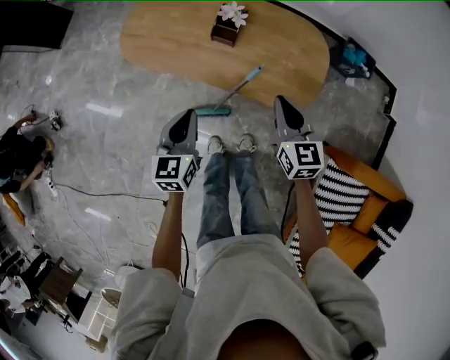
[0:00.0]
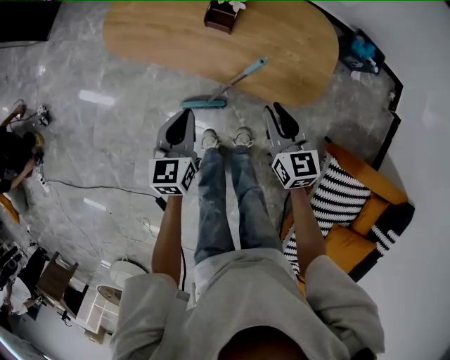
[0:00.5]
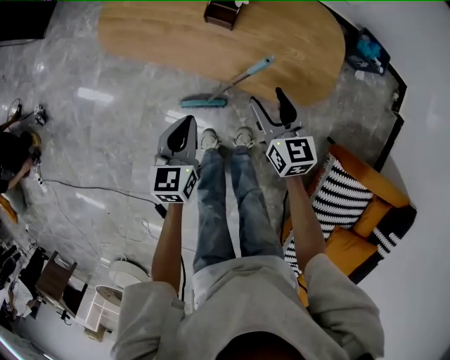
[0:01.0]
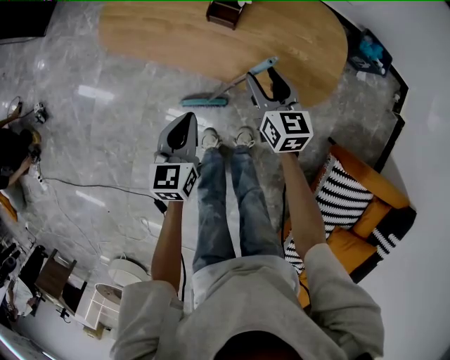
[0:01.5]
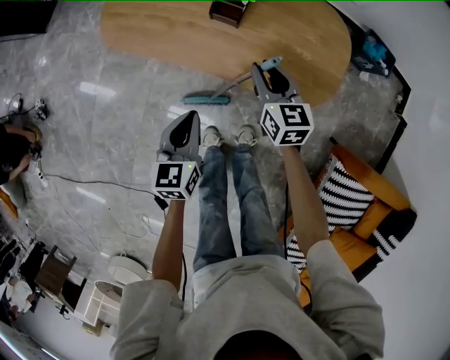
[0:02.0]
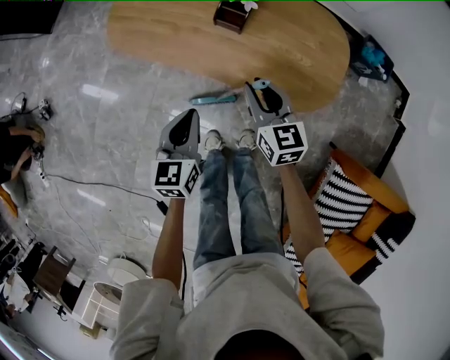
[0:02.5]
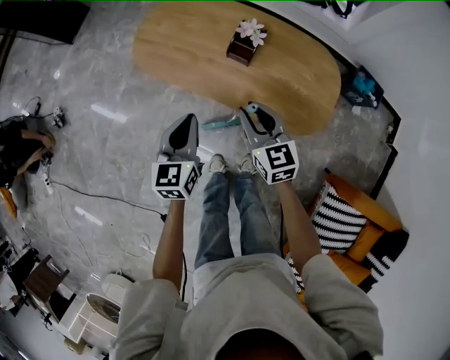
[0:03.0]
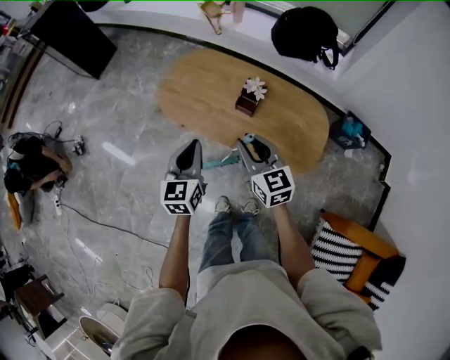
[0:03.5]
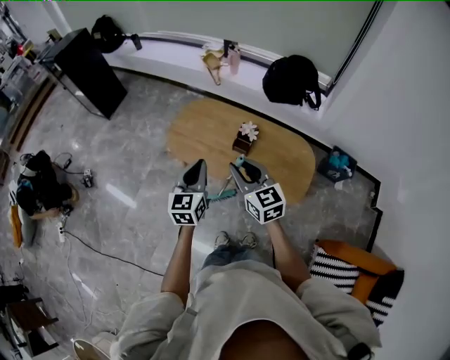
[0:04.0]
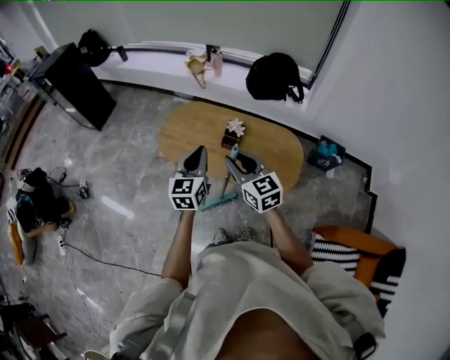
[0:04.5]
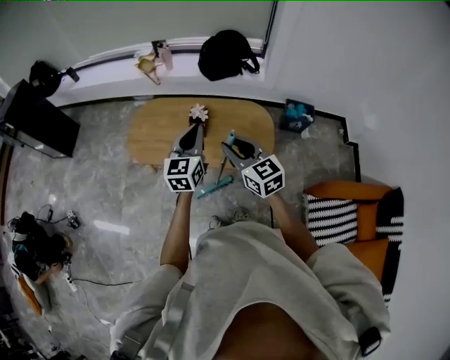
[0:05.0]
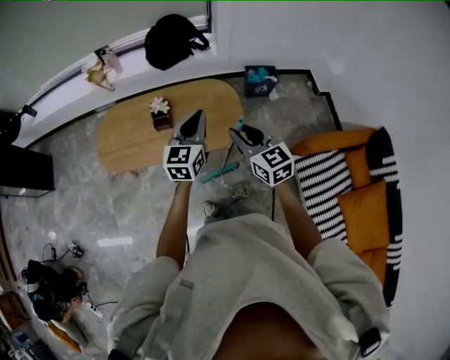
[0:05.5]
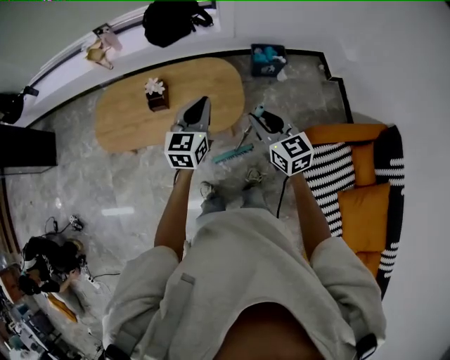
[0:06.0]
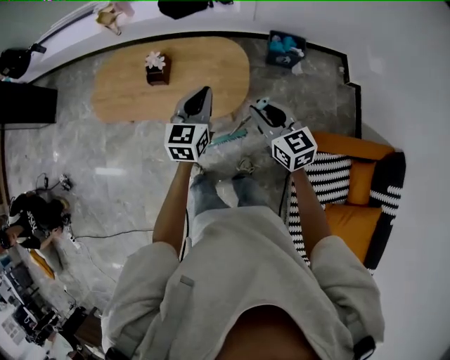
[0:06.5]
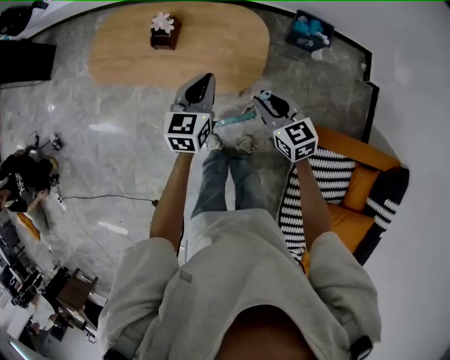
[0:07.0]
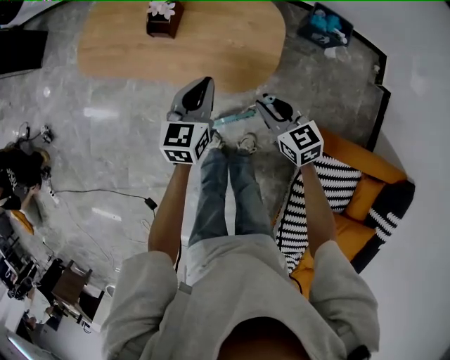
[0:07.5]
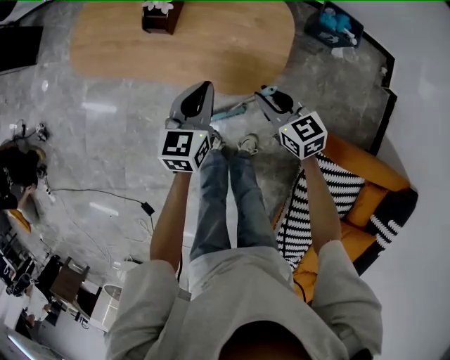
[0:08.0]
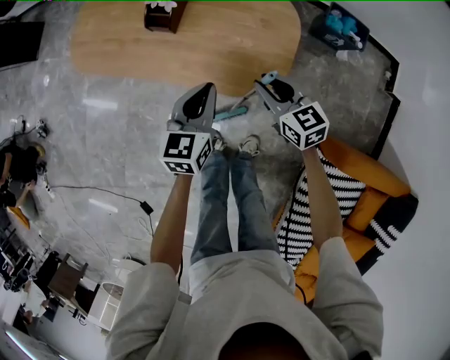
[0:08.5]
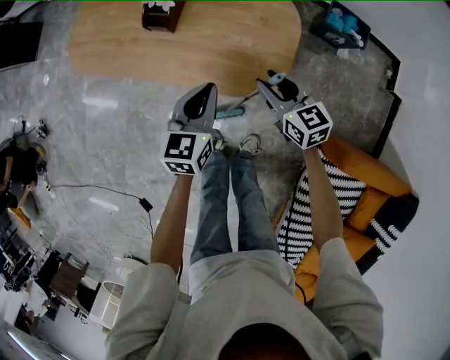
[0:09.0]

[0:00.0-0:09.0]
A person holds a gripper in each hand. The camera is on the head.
0.0 to 2.0 s: The left gripper heads downward, covering about 10 cm; the right gripper goes some 15 cm downward and forward, and opens.
2.0 to 4.5 s: The two grippers go some 35 cm upward. The left gripper changes its angle by roughly 20 degrees, while the right gripper changes its angle by some 20 degrees.
4.5 to 7.0 s: The left gripper changes place by approximately 35 cm, and changes its angle by roughly 20 degrees, while the right gripper shifts by some 40 cm.
7.0 to 9.0 s: The right gripper heads downward and forward, covering approximately 20 cm, while the left gripper moves downward, approximately 15 cm.

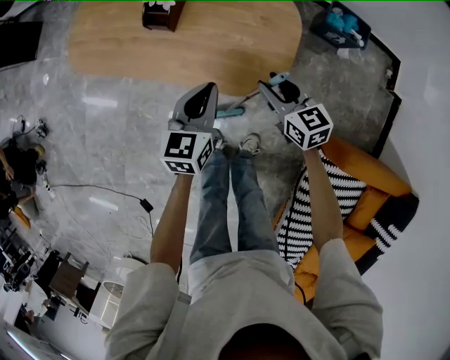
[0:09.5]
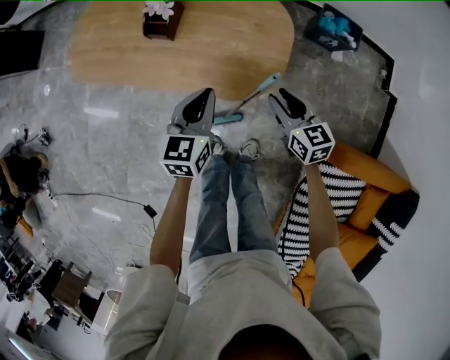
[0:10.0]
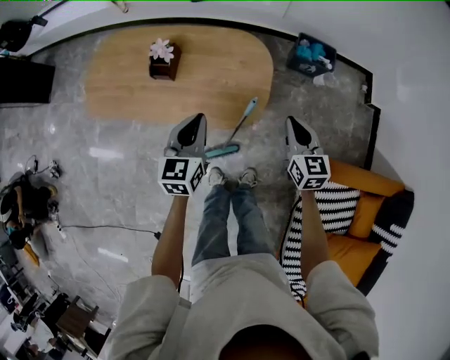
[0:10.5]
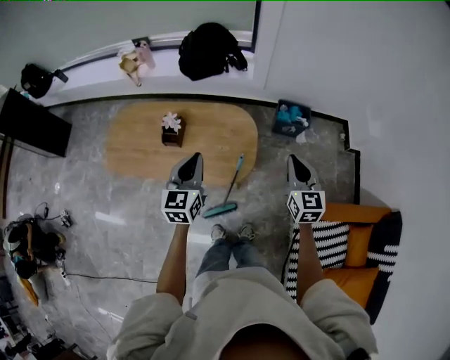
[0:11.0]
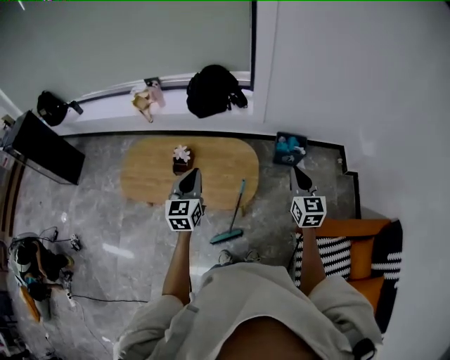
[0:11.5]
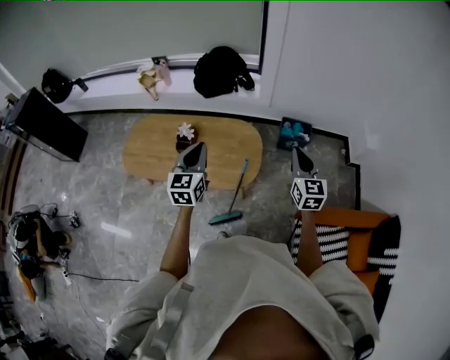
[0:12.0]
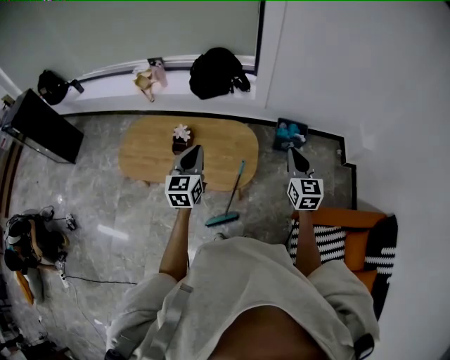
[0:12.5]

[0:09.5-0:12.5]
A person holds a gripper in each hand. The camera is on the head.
9.5 to 11.0 s: The right gripper goes roughly 35 cm upward and to the right, rotates about 40 degrees, and closes up. The left gripper heads upward, covering roughly 25 cm.
11.0 to 12.5 s: Both grippers travel together upward, approximately 10 cm.

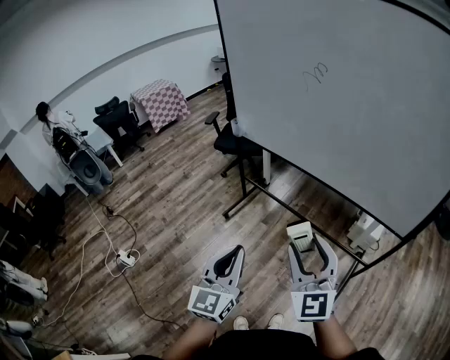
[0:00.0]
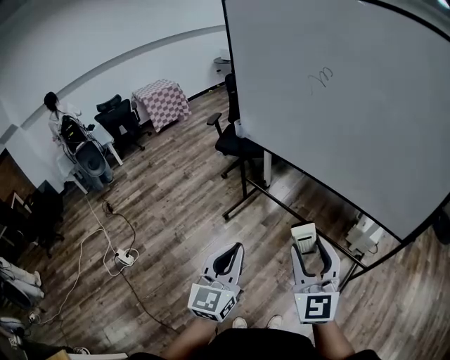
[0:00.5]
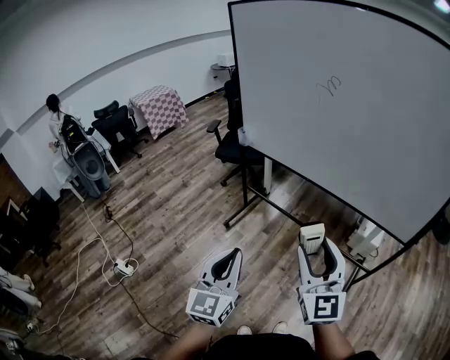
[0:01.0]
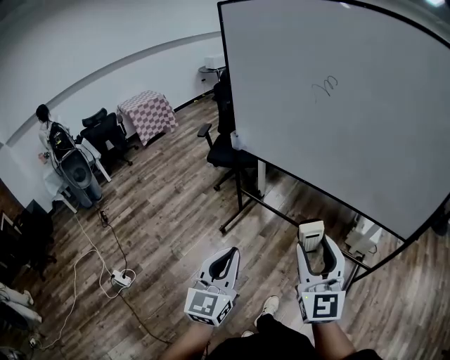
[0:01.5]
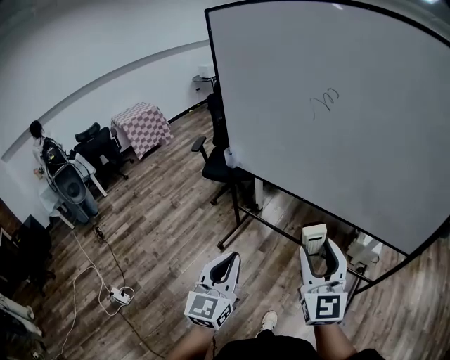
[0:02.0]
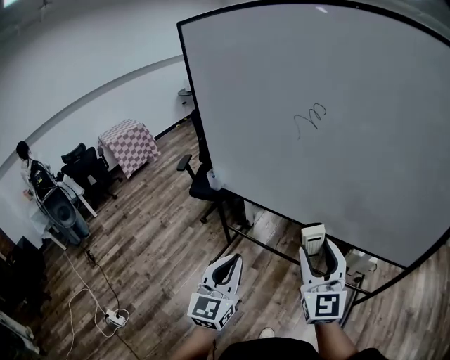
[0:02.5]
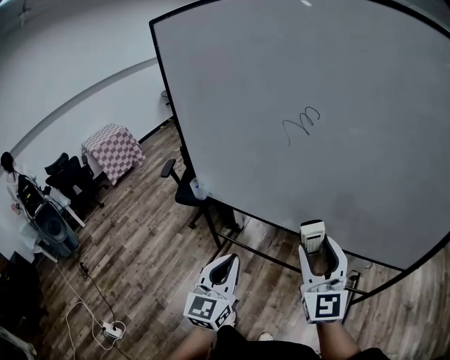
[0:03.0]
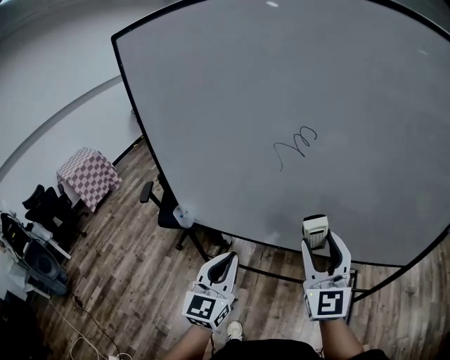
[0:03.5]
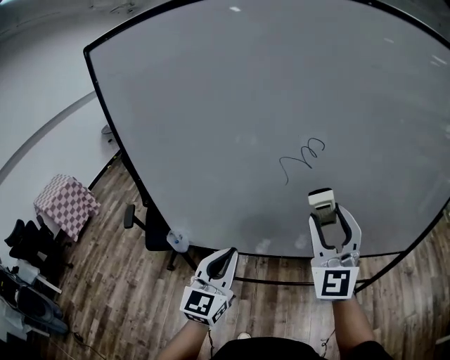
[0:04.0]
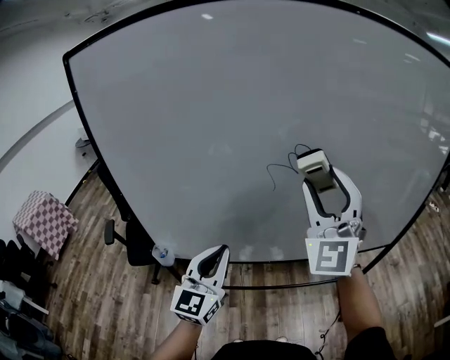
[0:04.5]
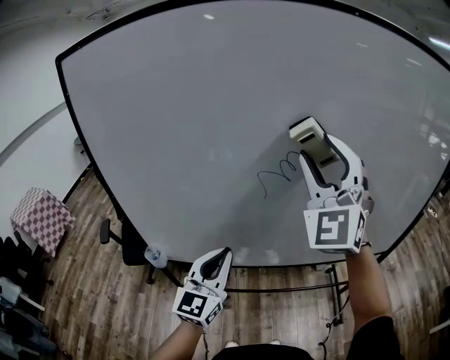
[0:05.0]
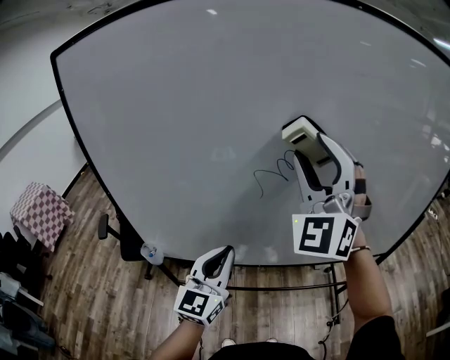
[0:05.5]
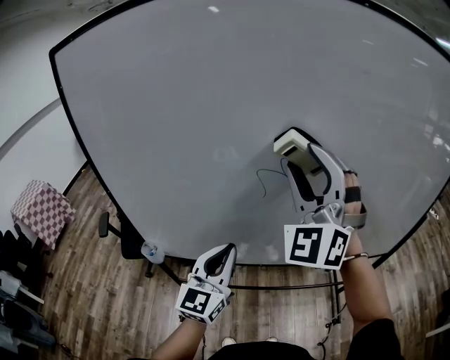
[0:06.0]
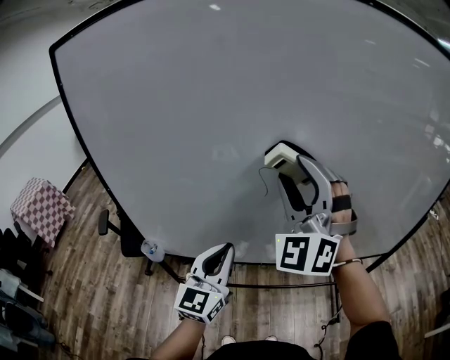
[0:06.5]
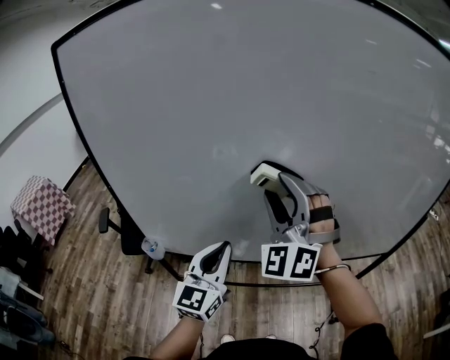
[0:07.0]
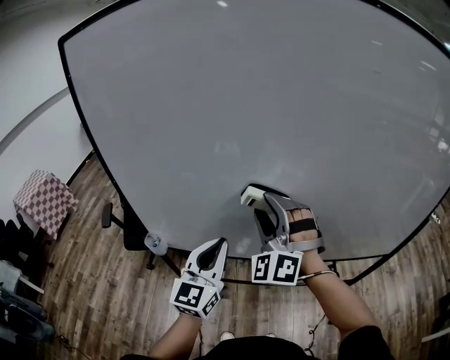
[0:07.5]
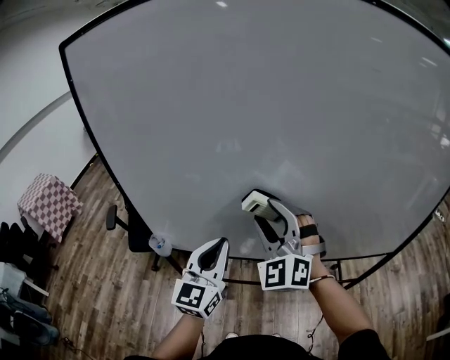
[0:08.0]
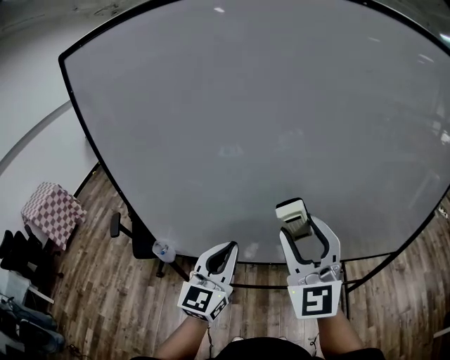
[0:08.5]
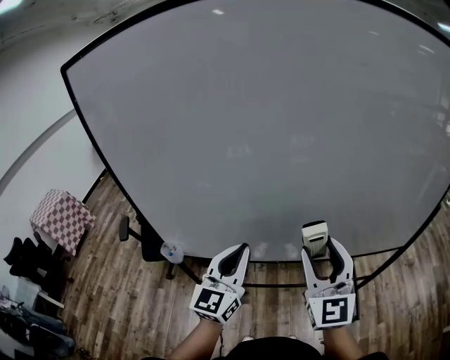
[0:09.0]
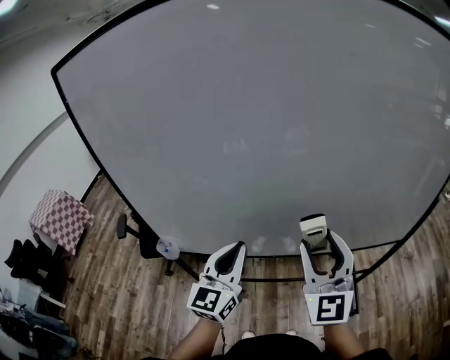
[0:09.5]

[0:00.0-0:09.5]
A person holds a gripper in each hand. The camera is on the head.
0.0 to 2.0 s: The right gripper travels forward by approximately 15 cm, while the left gripper goes some 20 cm forward and to the left.
2.0 to 4.0 s: The right gripper shifts by about 35 cm, and changes its angle by roughly 40 degrees; the left gripper ends up approximately 40 cm from where it was, and changes its angle by approximately 30 degrees.
4.0 to 5.5 s: The left gripper is displaced forward by roughly 5 cm, while the right gripper is displaced upward and forward by some 15 cm, and changes its angle by some 30 degrees.
5.5 to 7.5 s: The right gripper heads downward and to the left, covering some 20 cm, and rotates roughly 20 degrees.
7.5 to 9.5 s: The right gripper travels to the right and backward by roughly 15 cm, and twists approximately 50 degrees clockwise, seen from behind.

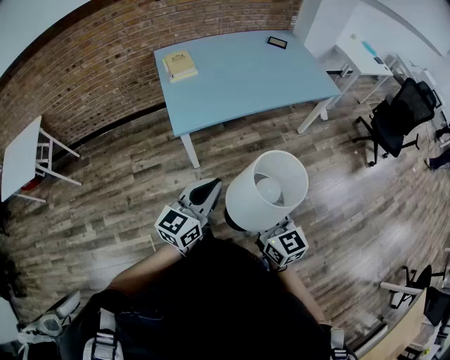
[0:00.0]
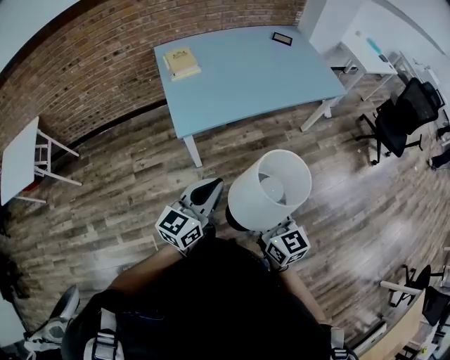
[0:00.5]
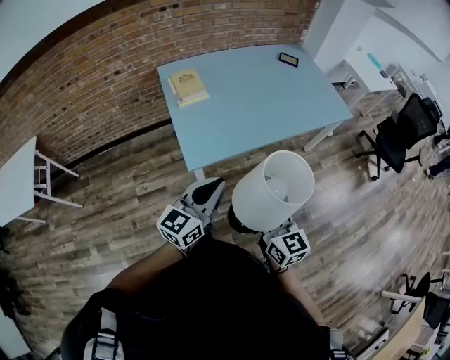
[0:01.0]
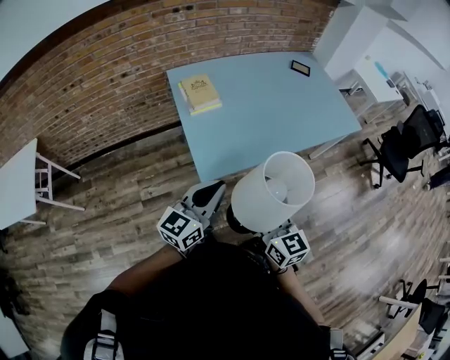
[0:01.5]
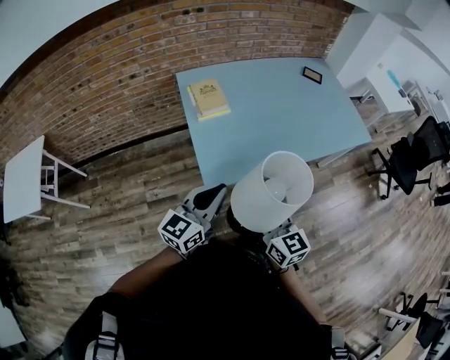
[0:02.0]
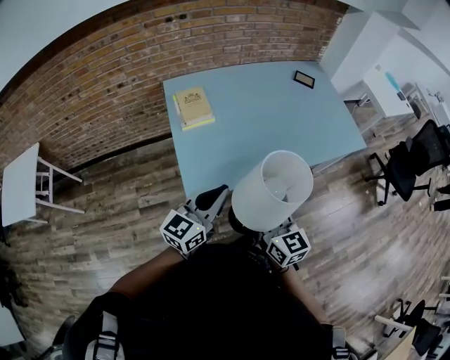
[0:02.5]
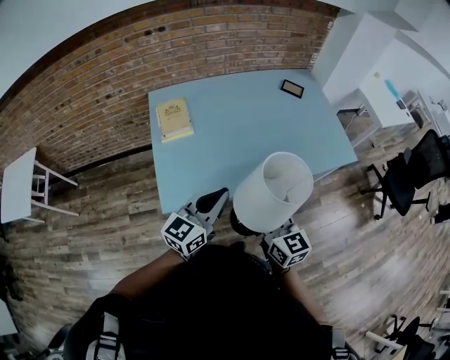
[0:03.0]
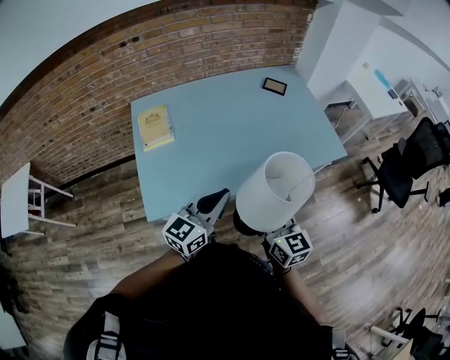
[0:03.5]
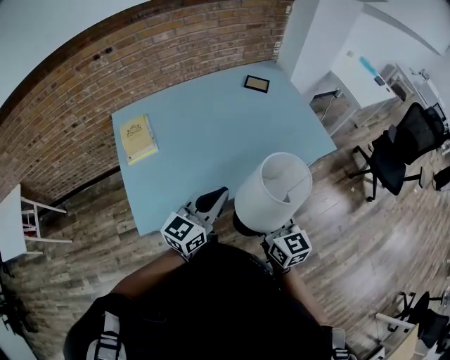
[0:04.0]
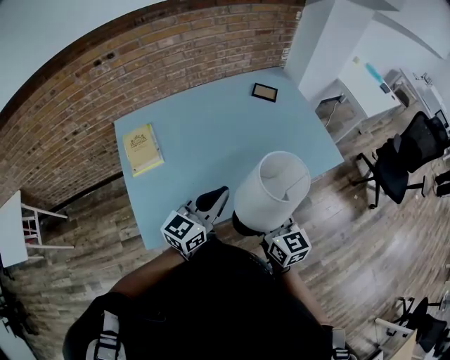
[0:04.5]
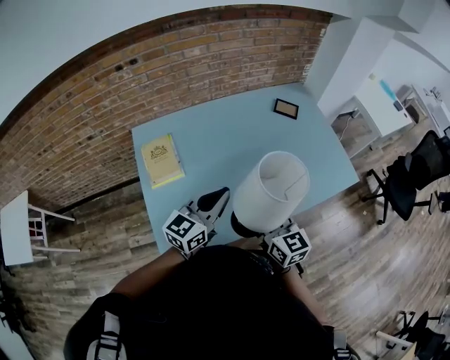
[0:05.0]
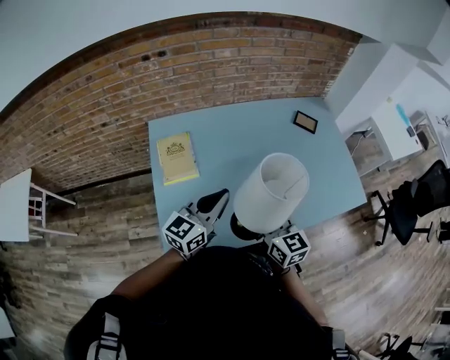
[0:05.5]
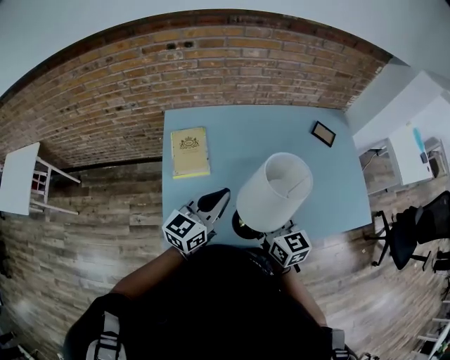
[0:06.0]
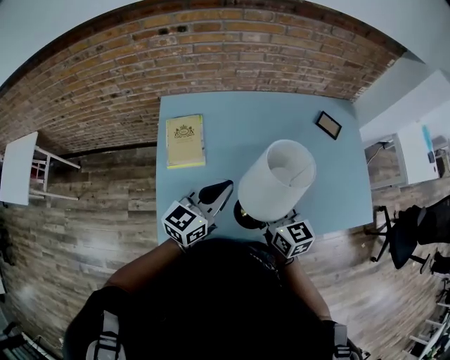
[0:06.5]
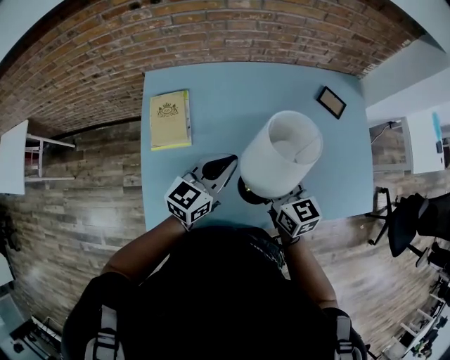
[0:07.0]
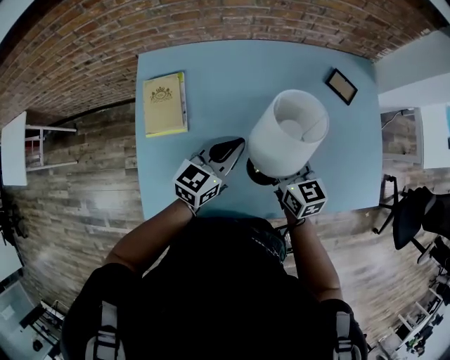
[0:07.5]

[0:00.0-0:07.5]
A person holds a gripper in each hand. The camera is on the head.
0.0 to 2.0 s: Both grippers travel together forward and to the left, about 35 cm.
2.0 to 4.0 s: Both grippers are carried to the right and forward, approximately 40 cm.
4.0 to 5.5 s: Both grippers move to the left and forward, about 25 cm.
5.5 to 7.5 s: The two grippers go some 25 cm forward, downward and to the right.
